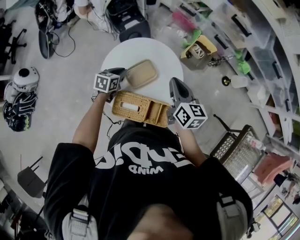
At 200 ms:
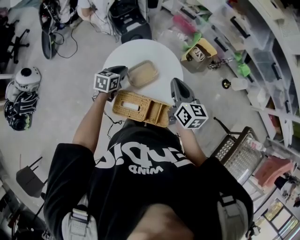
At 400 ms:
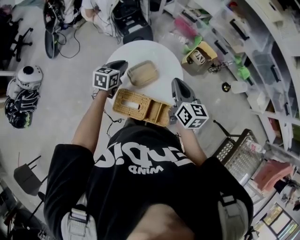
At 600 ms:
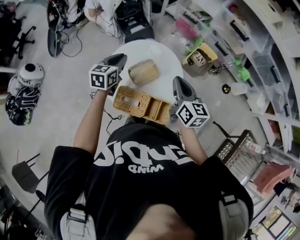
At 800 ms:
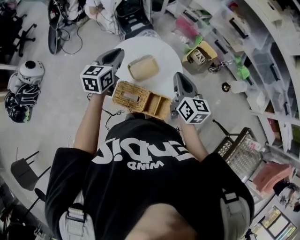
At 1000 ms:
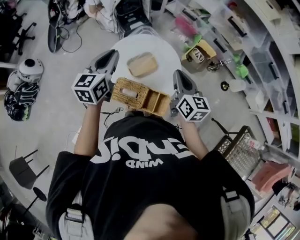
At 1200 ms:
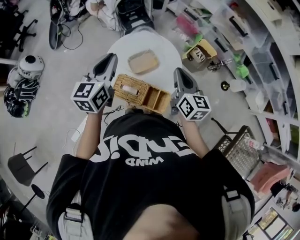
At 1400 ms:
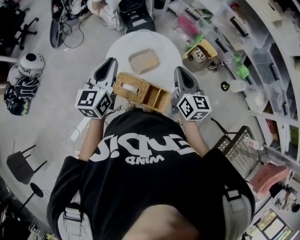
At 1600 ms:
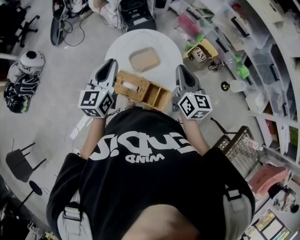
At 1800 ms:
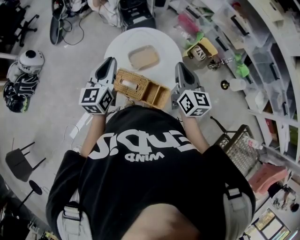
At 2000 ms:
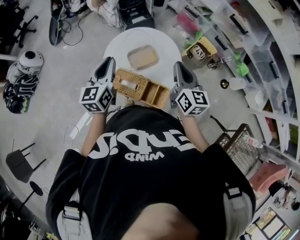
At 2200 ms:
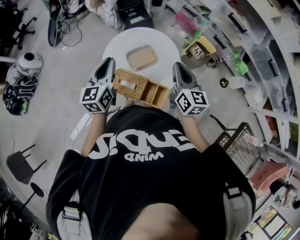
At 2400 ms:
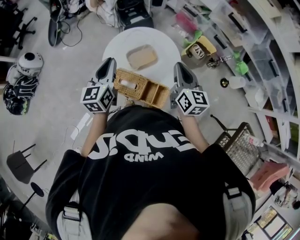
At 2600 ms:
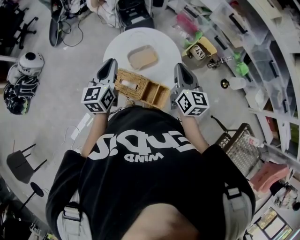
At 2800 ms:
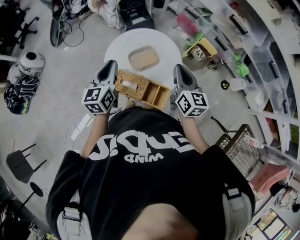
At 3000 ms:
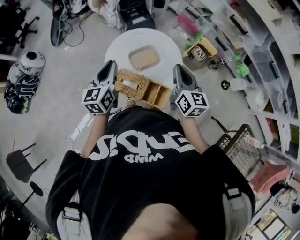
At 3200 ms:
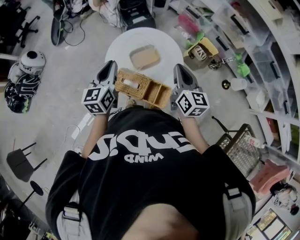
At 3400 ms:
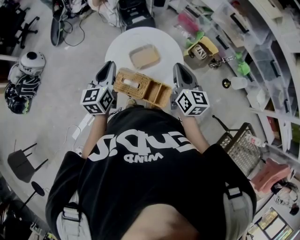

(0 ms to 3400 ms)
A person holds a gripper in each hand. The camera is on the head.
0 ms - 1600 ms: The right gripper heads upward and backward, covering some 10 cm. The left gripper shifts roughly 30 cm upward and backward, and tips its fingers upward by some 30 degrees.
1600 ms - 3400 ms: There are only small adjustments of the grippers.

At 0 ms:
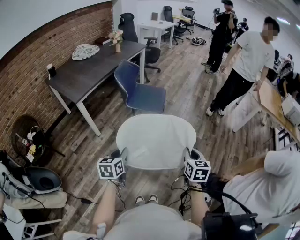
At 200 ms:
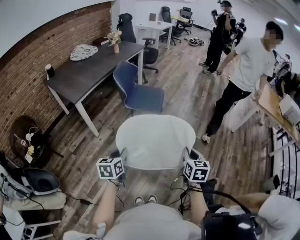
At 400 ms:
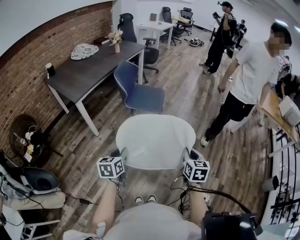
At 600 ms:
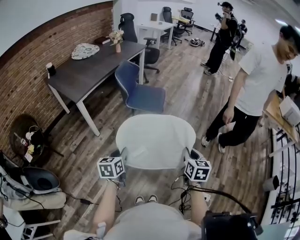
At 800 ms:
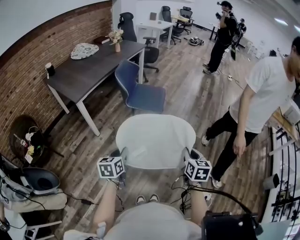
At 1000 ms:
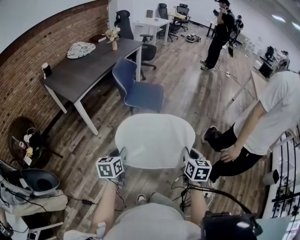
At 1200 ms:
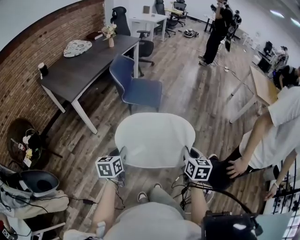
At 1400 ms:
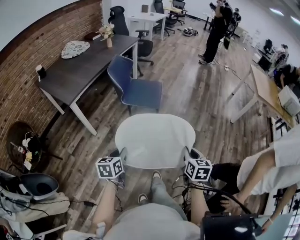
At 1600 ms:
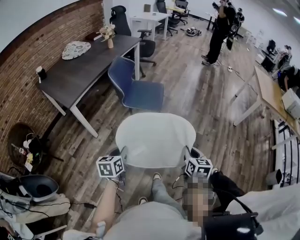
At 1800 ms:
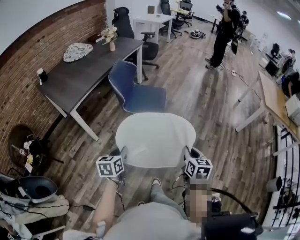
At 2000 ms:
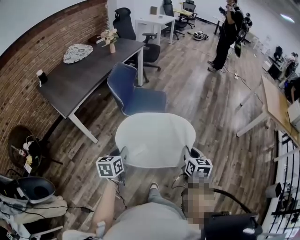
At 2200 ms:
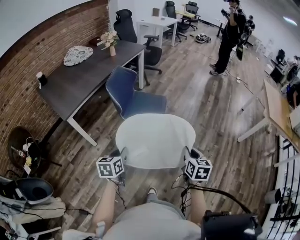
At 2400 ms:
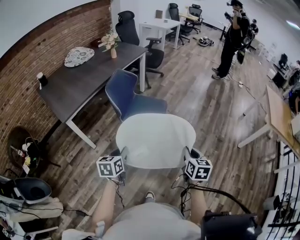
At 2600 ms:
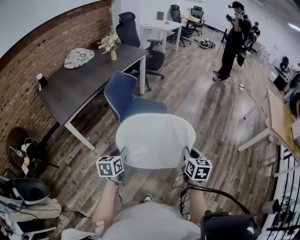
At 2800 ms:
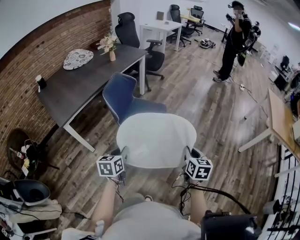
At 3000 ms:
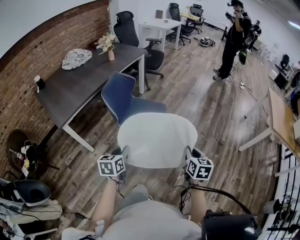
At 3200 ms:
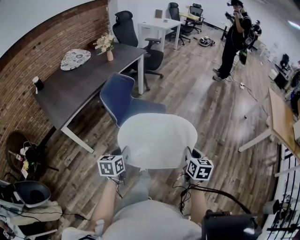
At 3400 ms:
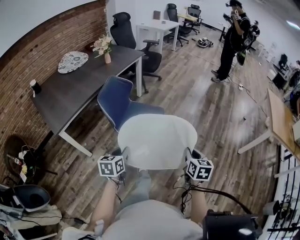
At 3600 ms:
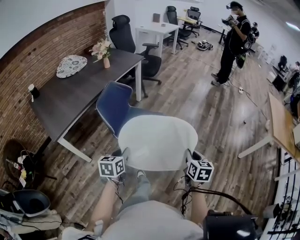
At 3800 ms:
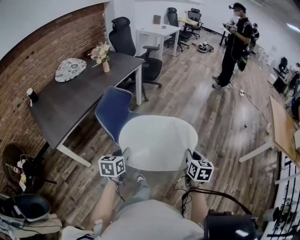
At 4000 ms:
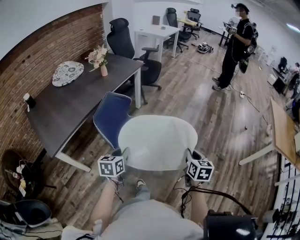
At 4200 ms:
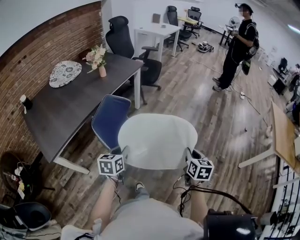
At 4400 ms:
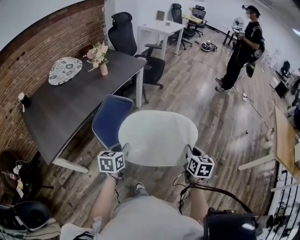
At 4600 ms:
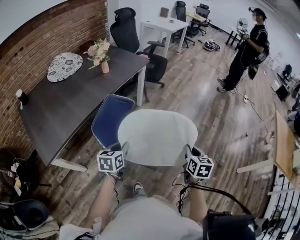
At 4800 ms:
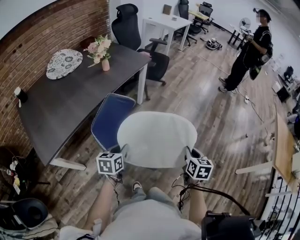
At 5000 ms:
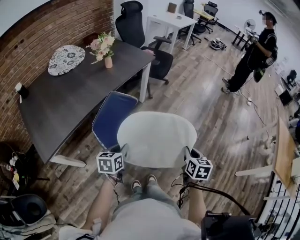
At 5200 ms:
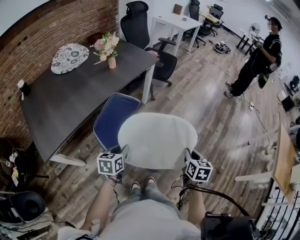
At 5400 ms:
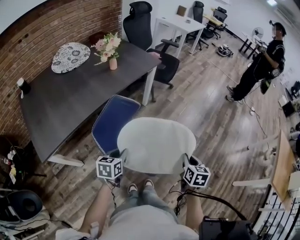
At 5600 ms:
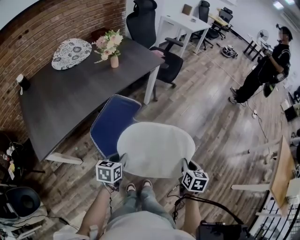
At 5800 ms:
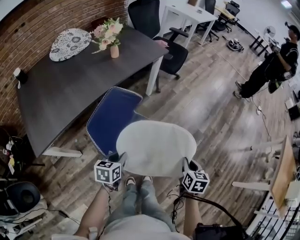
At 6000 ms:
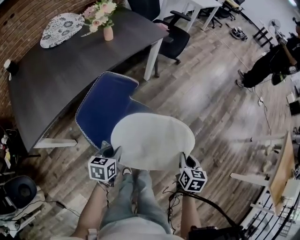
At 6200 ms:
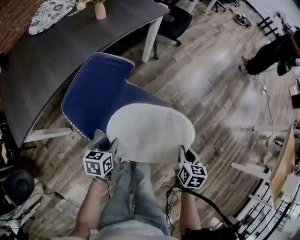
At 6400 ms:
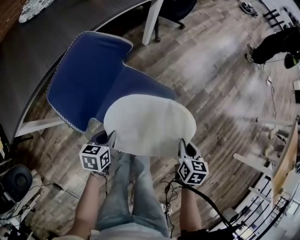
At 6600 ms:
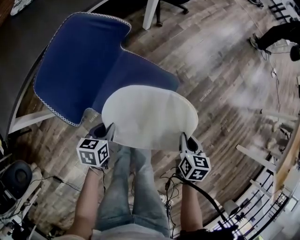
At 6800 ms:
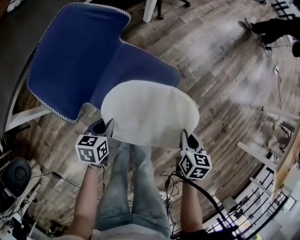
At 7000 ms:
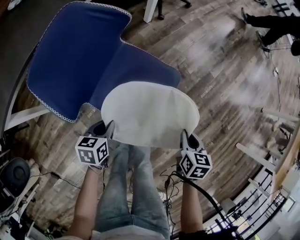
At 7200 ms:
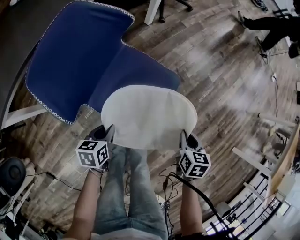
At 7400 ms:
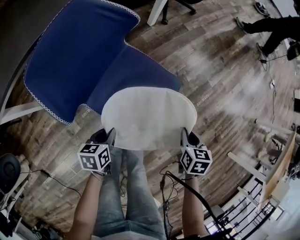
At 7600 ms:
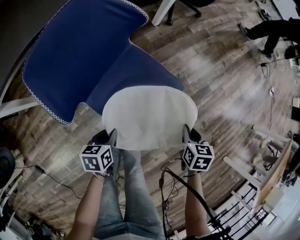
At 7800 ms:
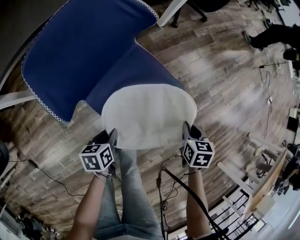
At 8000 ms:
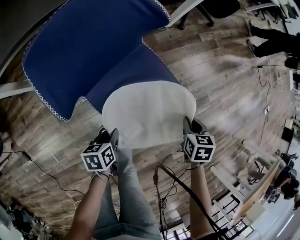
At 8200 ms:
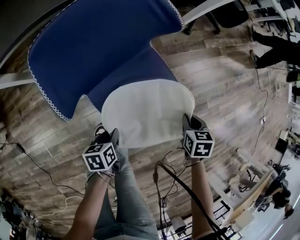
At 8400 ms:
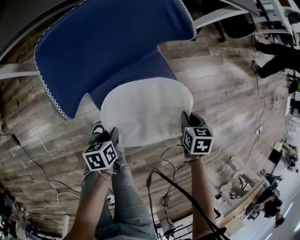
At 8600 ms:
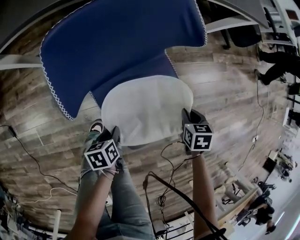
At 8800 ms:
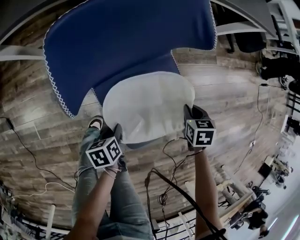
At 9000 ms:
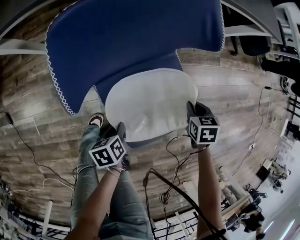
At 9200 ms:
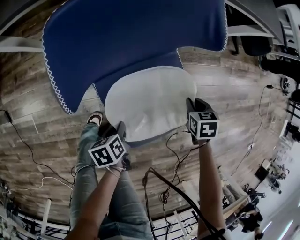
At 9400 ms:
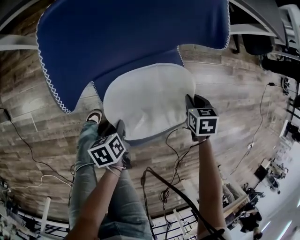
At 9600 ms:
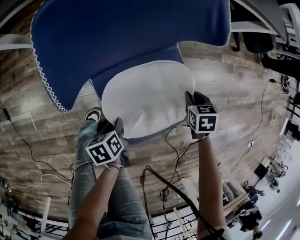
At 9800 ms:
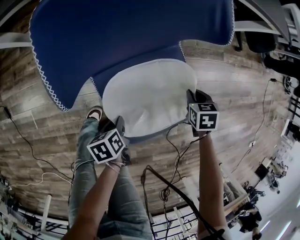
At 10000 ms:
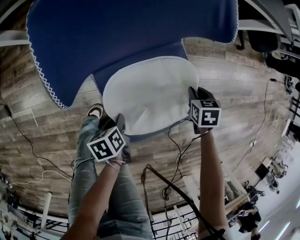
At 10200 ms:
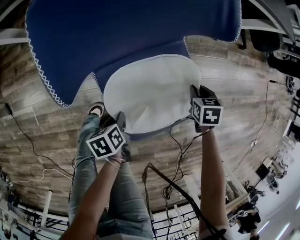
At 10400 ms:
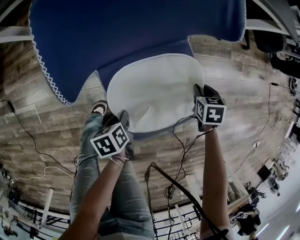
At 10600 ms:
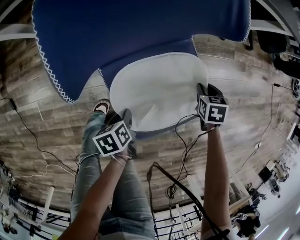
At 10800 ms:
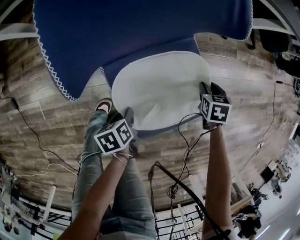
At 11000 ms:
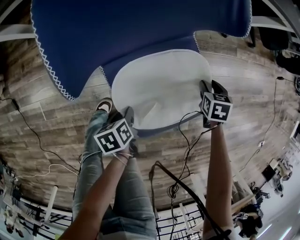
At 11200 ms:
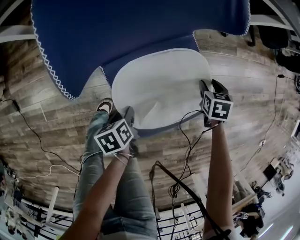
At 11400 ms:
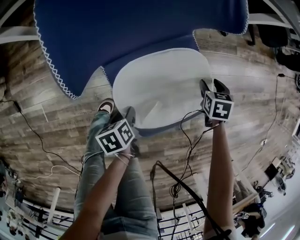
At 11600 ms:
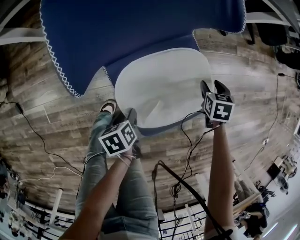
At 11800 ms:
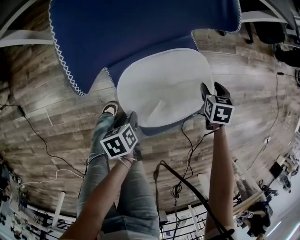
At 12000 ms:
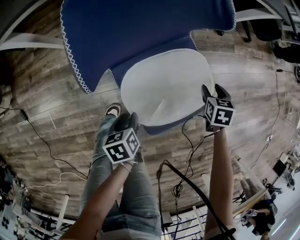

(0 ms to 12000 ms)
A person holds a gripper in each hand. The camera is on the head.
0 ms - 1600 ms: Both grippers move forward, about 5 cm.
1600 ms - 3000 ms: The grippers both shift forward by roughly 25 cm.
3000 ms - 4400 ms: Both grippers move forward, some 30 cm.
4400 ms - 6000 ms: The two grippers go approximately 15 cm downward and forward.
6000 ms - 7600 ms: Both grippers travel together downward, some 20 cm. The left gripper turns by some 20 degrees. Meanwhile the right gripper rotates some 20 degrees.
7600 ms - 9000 ms: The right gripper shifts by some 25 cm, and changes its angle by some 40 degrees; the left gripper travels downward by roughly 10 cm, and rolls counterclockwise, seen from behind, by approximately 40 degrees.
9000 ms - 10400 ms: The right gripper shifts about 5 cm downward.
10400 ms - 12000 ms: Both grippers move upward, approximately 5 cm. The right gripper opens up.

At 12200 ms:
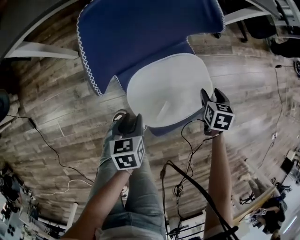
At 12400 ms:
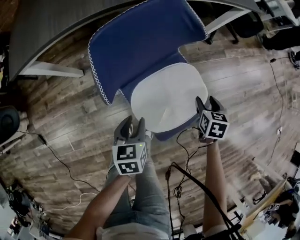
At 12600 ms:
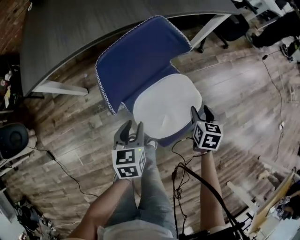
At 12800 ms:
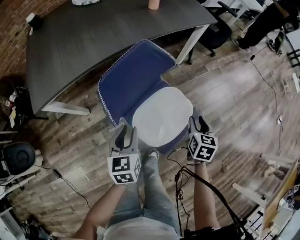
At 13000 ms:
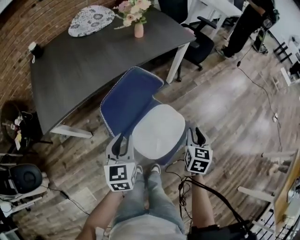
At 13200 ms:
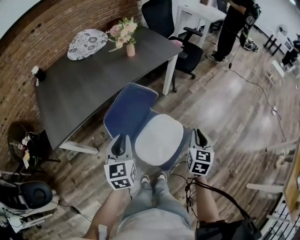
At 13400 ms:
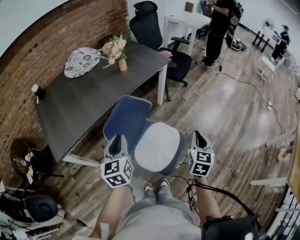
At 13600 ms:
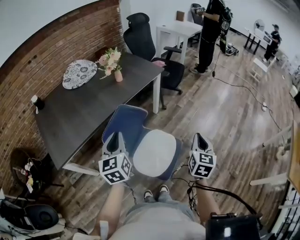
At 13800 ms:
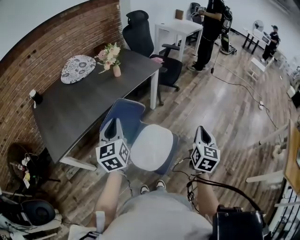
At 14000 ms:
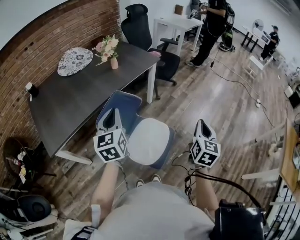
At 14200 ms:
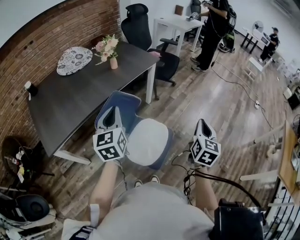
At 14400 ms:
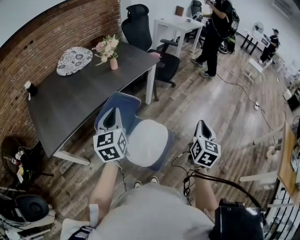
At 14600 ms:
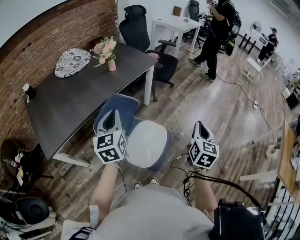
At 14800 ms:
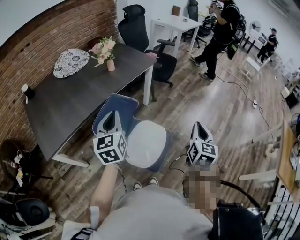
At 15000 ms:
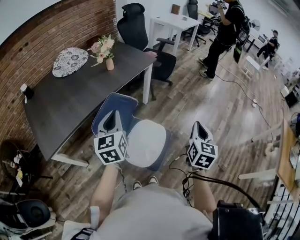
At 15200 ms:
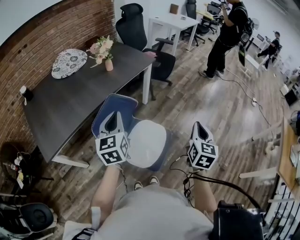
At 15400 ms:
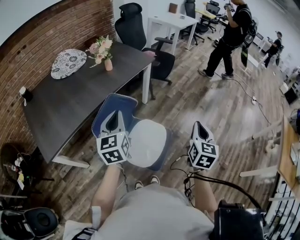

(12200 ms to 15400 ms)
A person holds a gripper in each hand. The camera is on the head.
12200 ms - 13800 ms: The left gripper goes approximately 50 cm upward, angles its fingers upward, by about 50 degrees, and closes up. Meanwhile the right gripper travels upward and backward by roughly 50 cm, angles its fingers upward, by about 50 degrees, and closes.
13800 ms - 15400 ms: The grippers make only small movements.

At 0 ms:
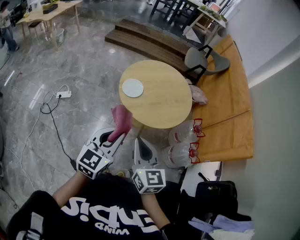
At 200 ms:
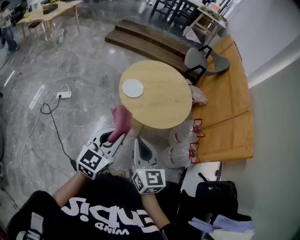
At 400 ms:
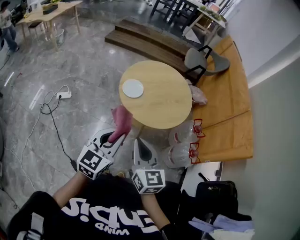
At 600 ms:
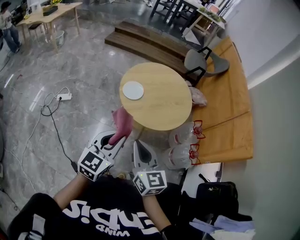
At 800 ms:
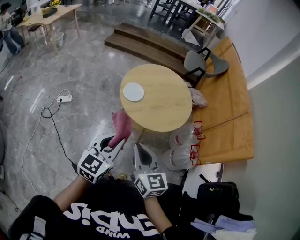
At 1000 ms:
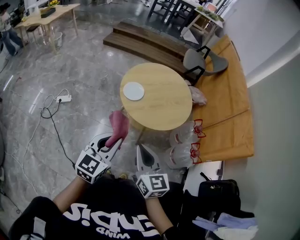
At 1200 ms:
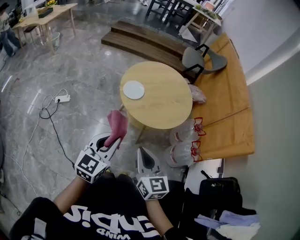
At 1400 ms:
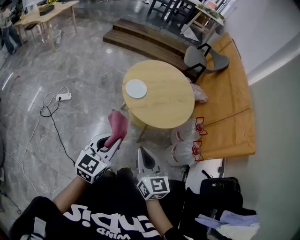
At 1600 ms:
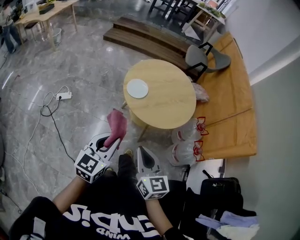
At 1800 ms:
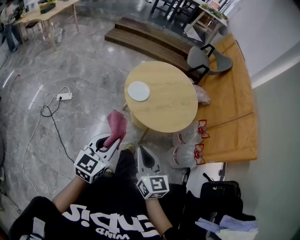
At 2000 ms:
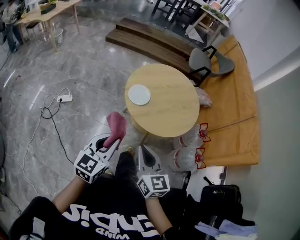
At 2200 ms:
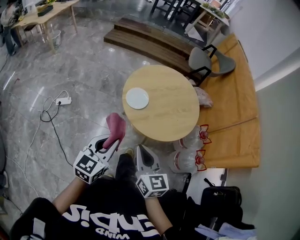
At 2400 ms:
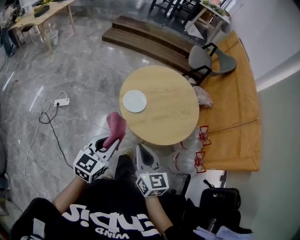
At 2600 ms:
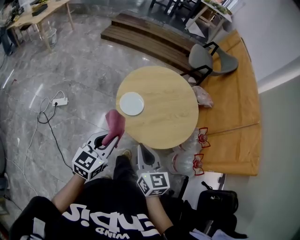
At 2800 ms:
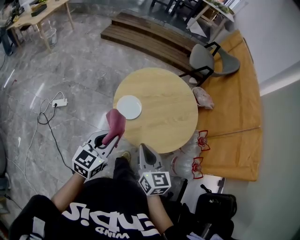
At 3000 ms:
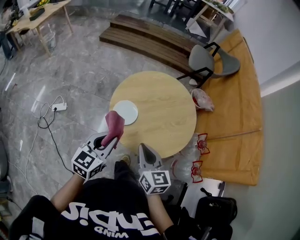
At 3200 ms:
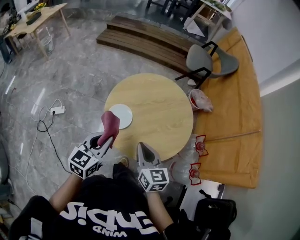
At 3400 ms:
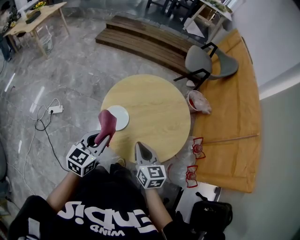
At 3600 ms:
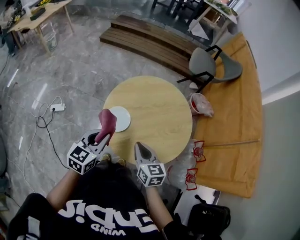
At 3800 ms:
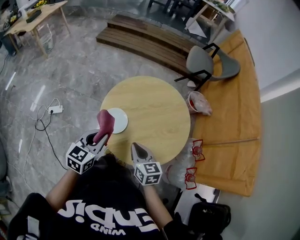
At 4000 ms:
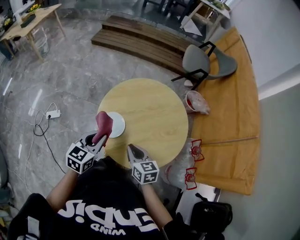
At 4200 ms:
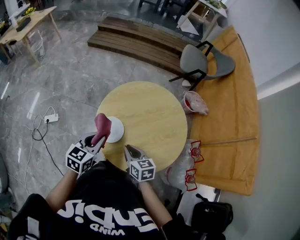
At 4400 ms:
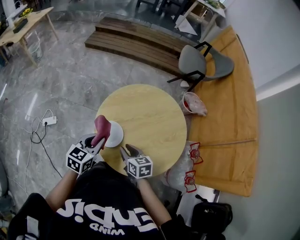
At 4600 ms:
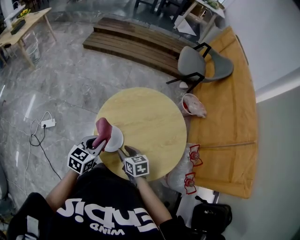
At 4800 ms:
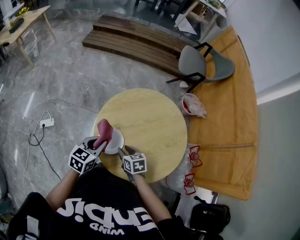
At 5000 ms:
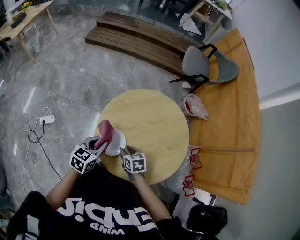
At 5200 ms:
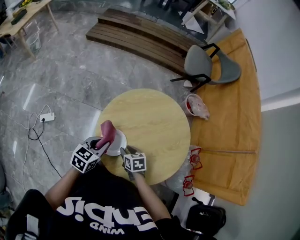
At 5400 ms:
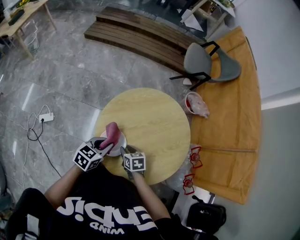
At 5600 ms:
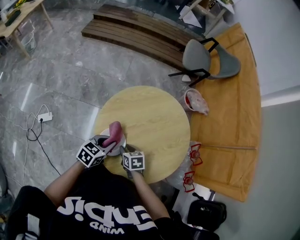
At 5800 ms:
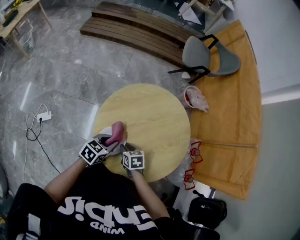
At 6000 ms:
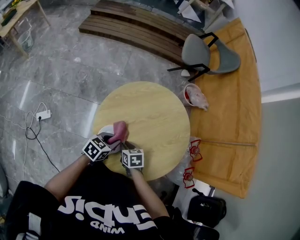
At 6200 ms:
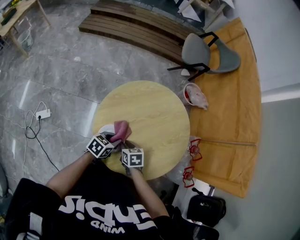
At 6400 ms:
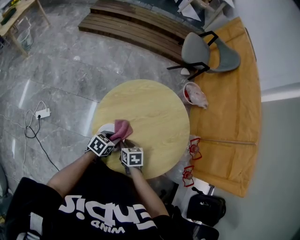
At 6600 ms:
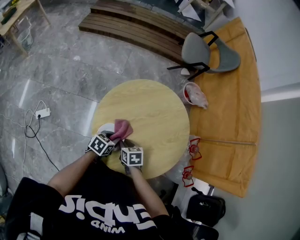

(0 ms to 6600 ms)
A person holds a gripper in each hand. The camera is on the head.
0 ms - 1600 ms: The left gripper heads to the left, covering approximately 5 cm.
1600 ms - 3200 ms: Both grippers travel together forward, some 30 cm.
3200 ms - 5000 ms: The right gripper goes about 25 cm downward and forward, tilts its fingers some 30 degrees downward, and opens up, while the left gripper goes approximately 20 cm forward and downward.
5000 ms - 6600 ms: The left gripper moves downward and to the right, about 15 cm, and swivels about 20 degrees.
